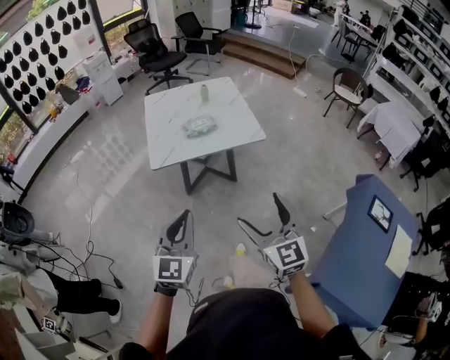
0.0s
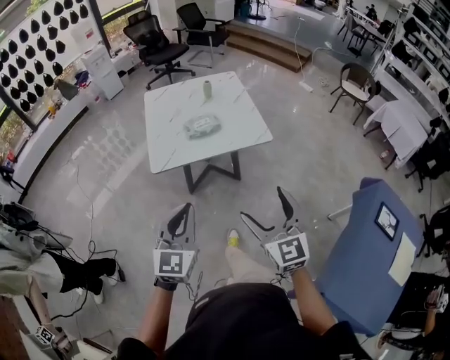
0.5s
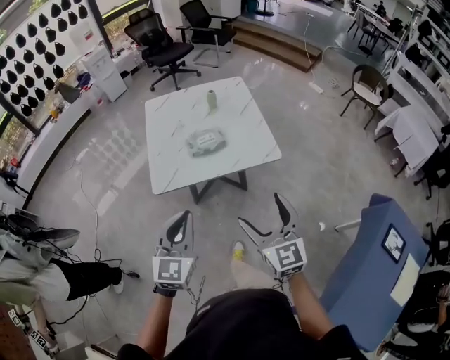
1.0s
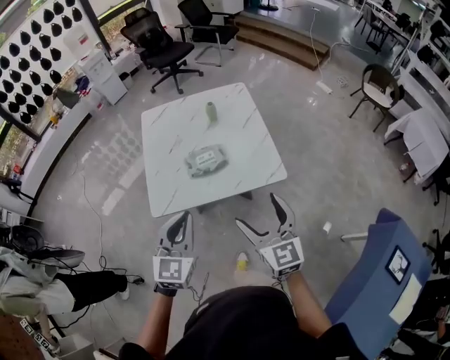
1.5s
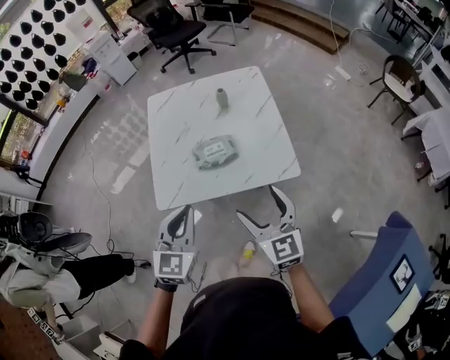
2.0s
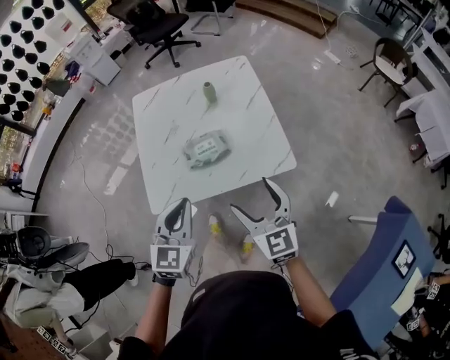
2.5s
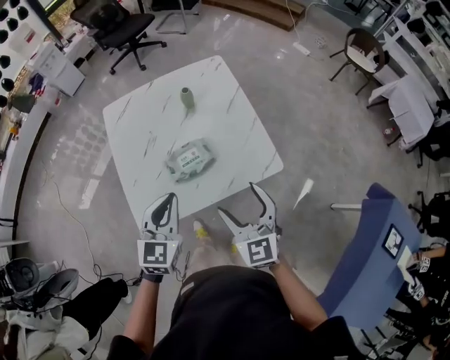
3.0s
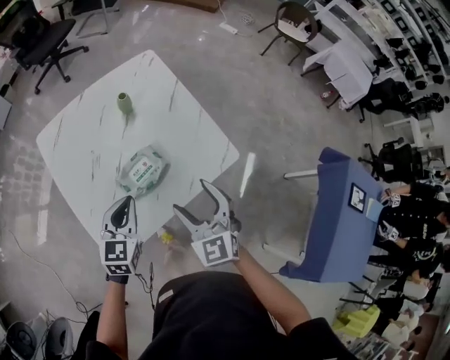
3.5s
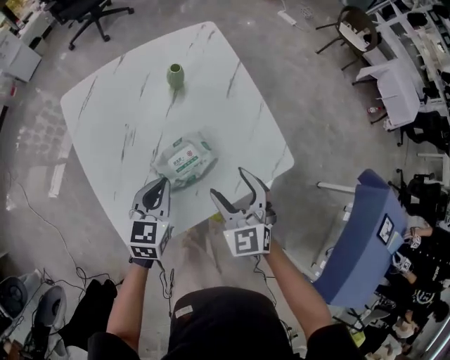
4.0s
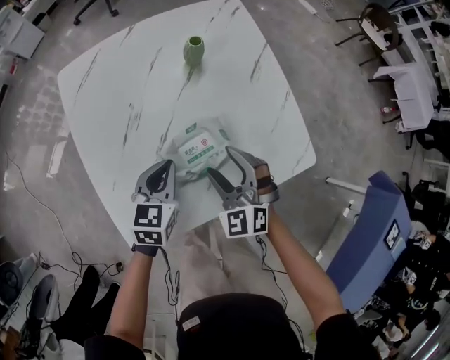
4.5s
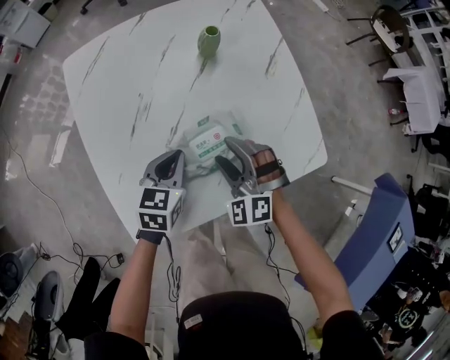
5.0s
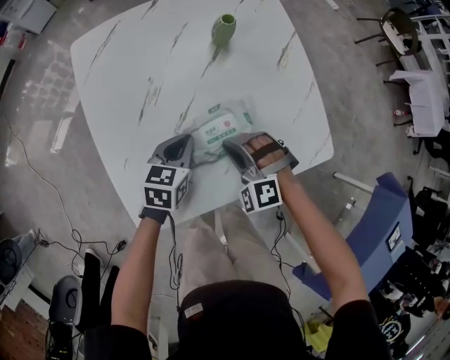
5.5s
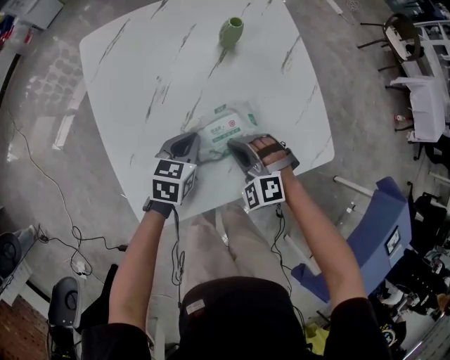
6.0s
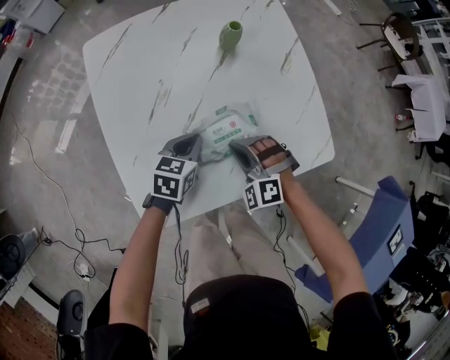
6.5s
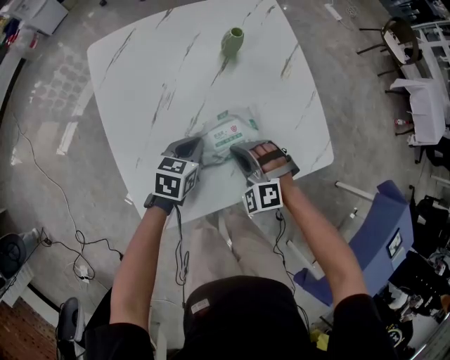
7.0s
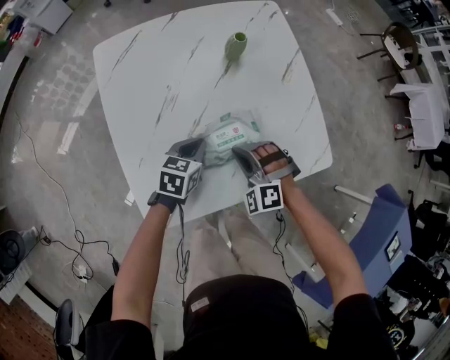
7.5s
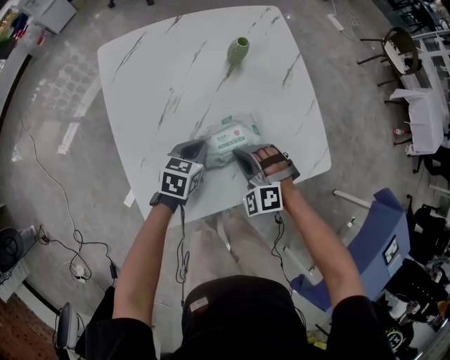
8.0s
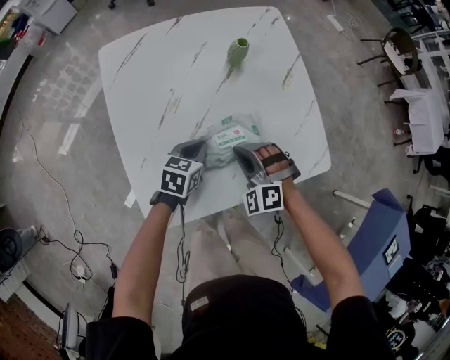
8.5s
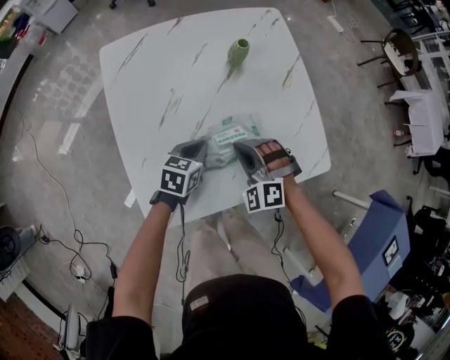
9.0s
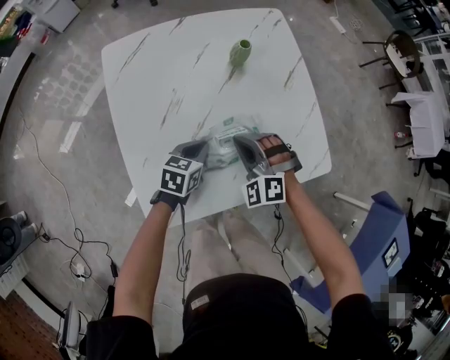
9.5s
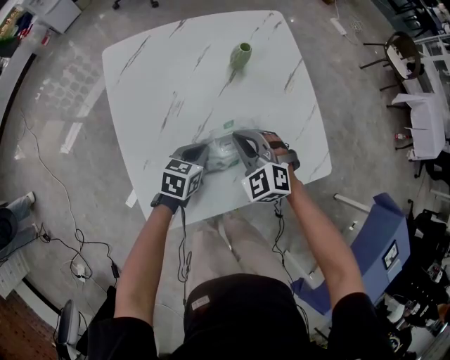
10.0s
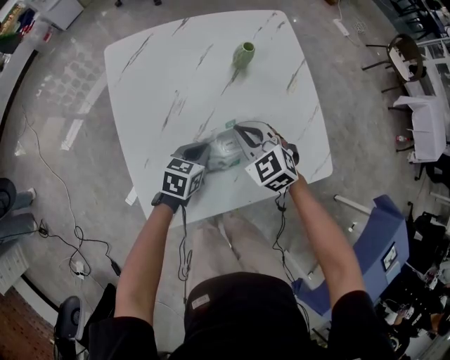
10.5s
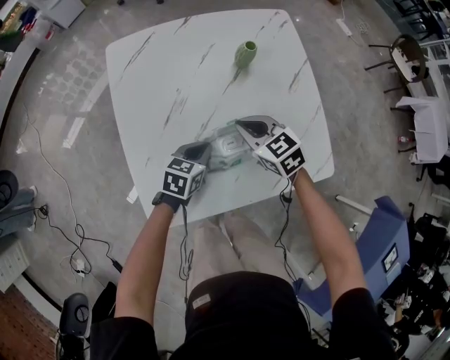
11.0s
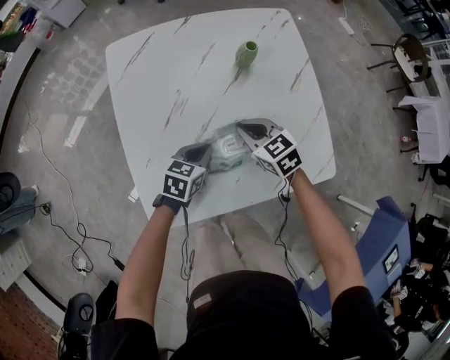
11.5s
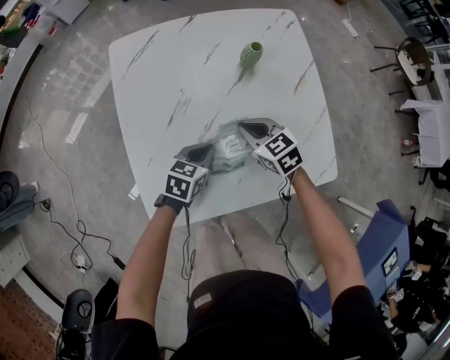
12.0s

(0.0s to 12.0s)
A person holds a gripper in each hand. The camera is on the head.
0.0s - 2.0s: The two grippers travel together, forward, approximately 40 cm.
2.0s - 4.0s: The left gripper shifts by about 35 cm, and changes its angle by about 30 degrees. Meanwhile the right gripper ends up some 30 cm from where it was, and rotates approximately 30 degrees.
4.0s - 6.0s: The left gripper heads downward, covering some 10 cm; the right gripper moves downward and to the left, about 20 cm, rotates around the line of its fingers by approximately 40 degrees, counterclockwise from behind, and closes its fingers.
6.0s - 8.0s: There are only small adjustments of the grippers.
8.0s - 10.0s: The right gripper moves forward, approximately 5 cm, and changes its angle by approximately 20 degrees.
10.0s - 12.0s: The right gripper moves approximately 5 cm, and turns by some 40 degrees.

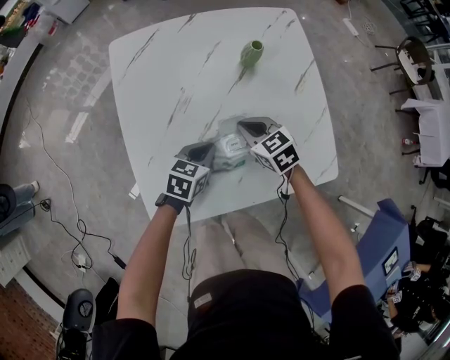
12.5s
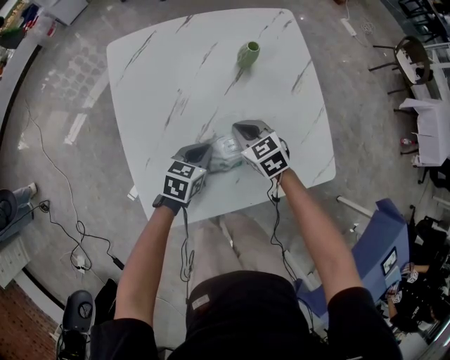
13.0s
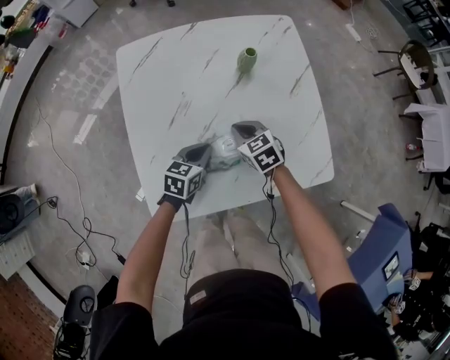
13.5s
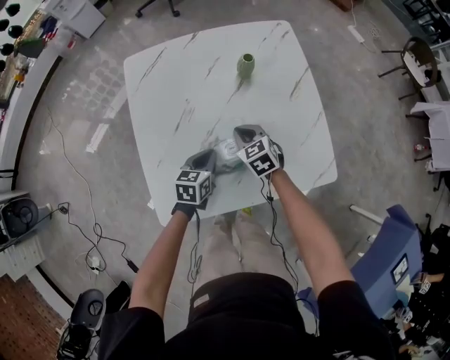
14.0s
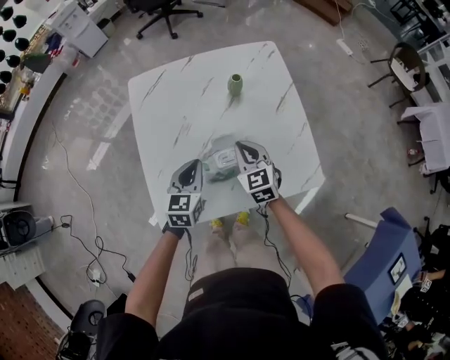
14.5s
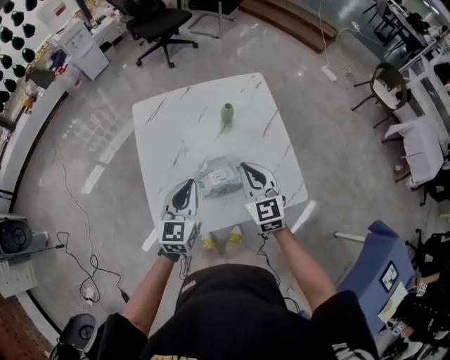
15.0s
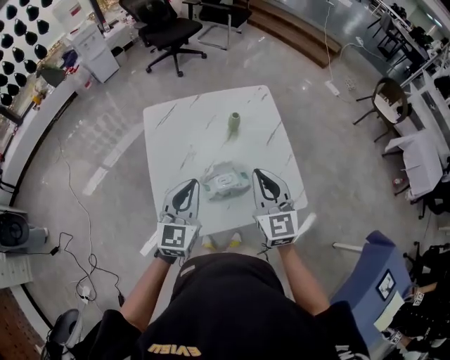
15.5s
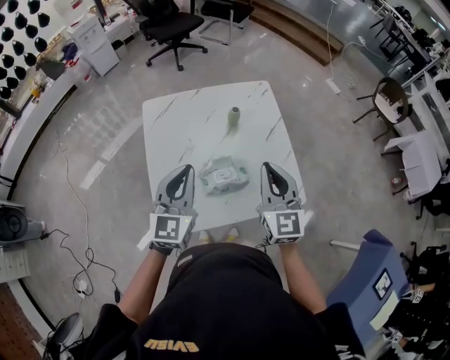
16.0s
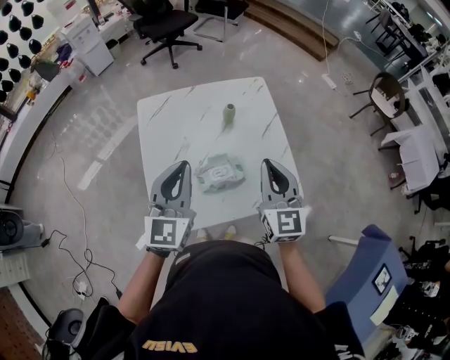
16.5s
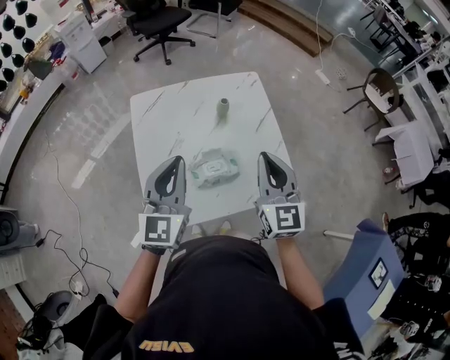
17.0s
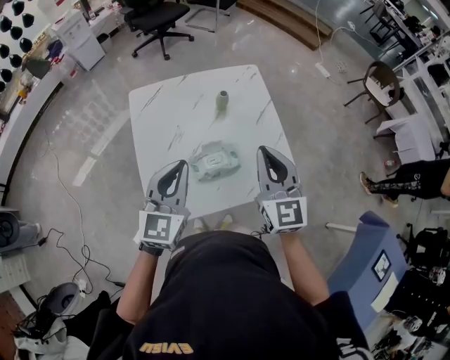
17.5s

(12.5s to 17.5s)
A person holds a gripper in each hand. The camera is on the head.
12.5s - 15.0s: The two grippers go some 25 cm upward. The left gripper rotates about 40 degrees; the right gripper rotates about 40 degrees.
15.0s - 17.5s: The right gripper shifts roughly 15 cm upward and backward. Meanwhile the left gripper moves upward, about 10 cm.

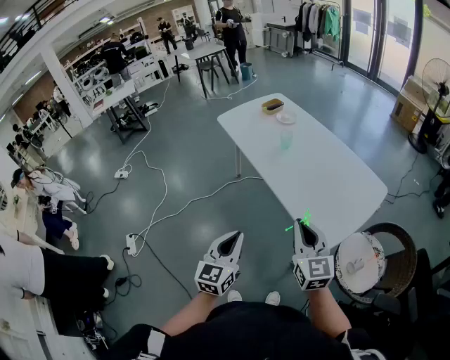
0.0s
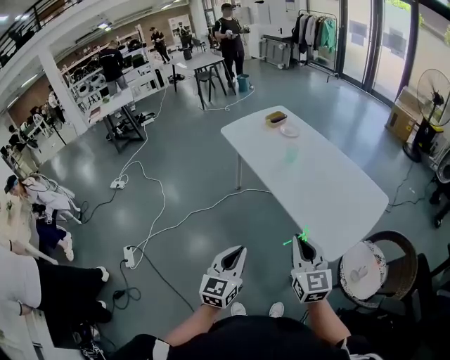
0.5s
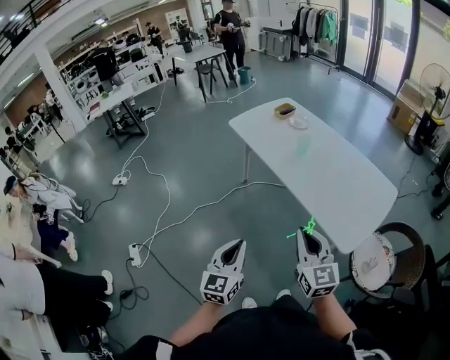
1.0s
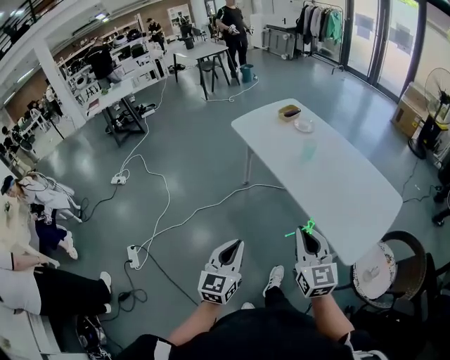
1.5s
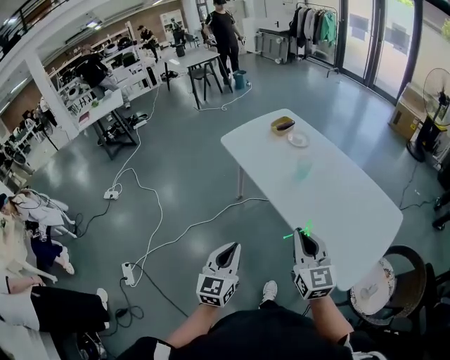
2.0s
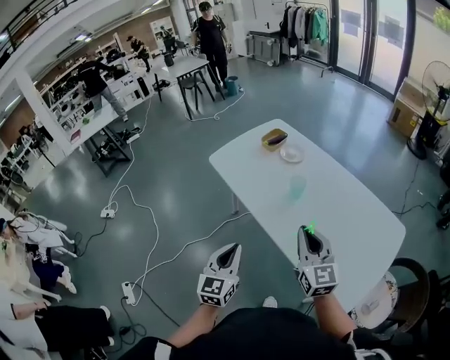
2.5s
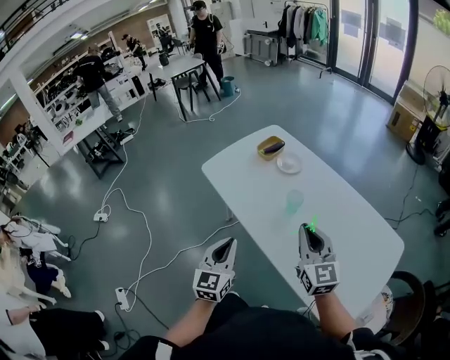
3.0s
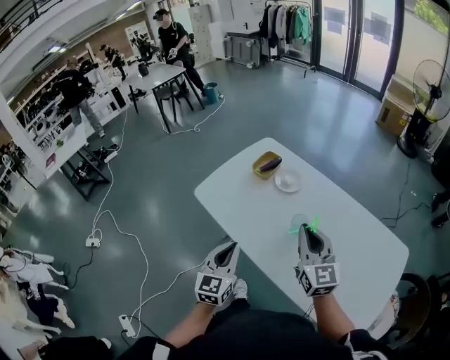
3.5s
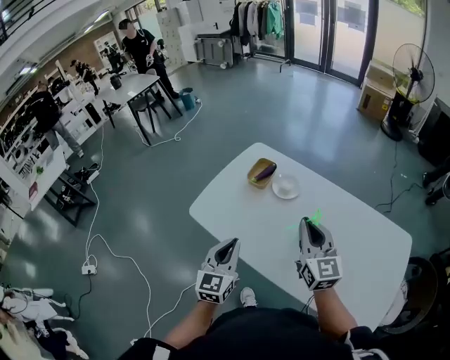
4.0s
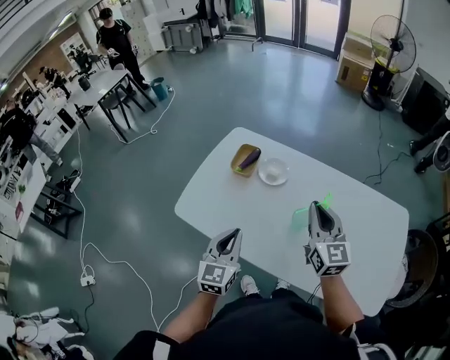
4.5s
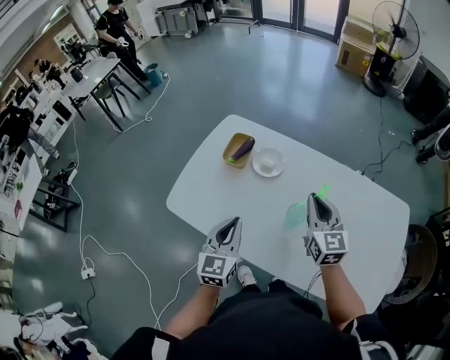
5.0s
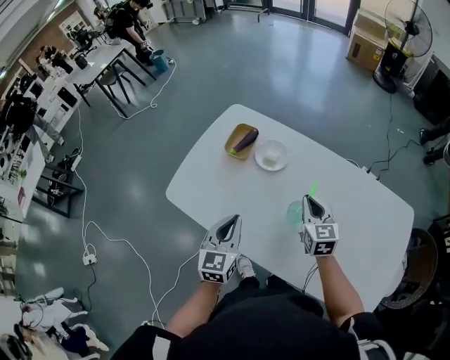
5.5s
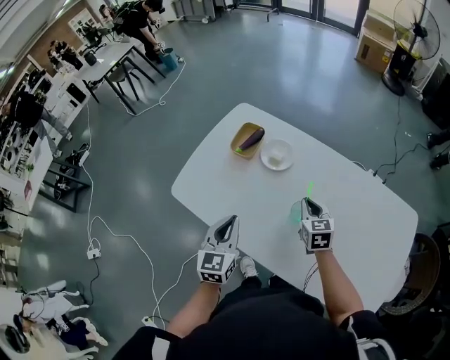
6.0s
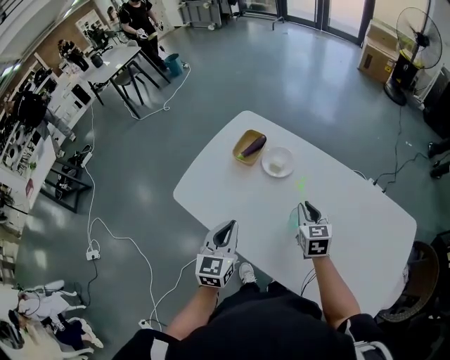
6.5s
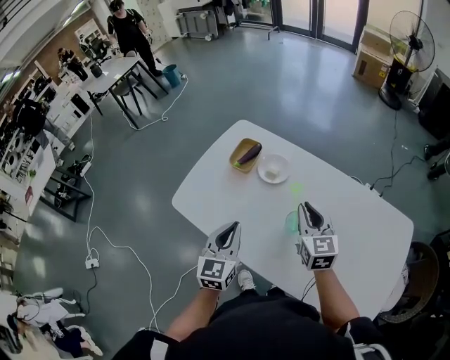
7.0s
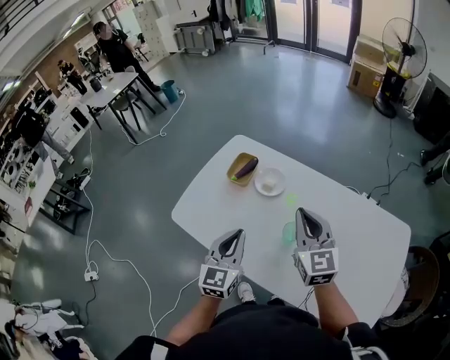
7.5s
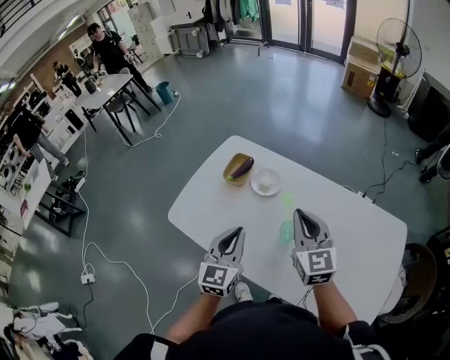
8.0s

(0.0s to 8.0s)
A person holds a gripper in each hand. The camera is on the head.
0.0s - 2.0s: The grippers both shift forward and to the left by about 20 cm.
2.0s - 4.0s: The two grippers travel together, forward, approximately 50 cm. The right gripper swivels roughly 20 degrees.
4.0s - 6.0s: The right gripper travels downward and forward by approximately 25 cm, and angles its fingers downward, by some 30 degrees; the left gripper goes some 10 cm forward and downward.
6.0s - 8.0s: The right gripper travels upward by approximately 20 cm, and changes its angle by approximately 30 degrees. The left gripper goes some 10 cm upward.

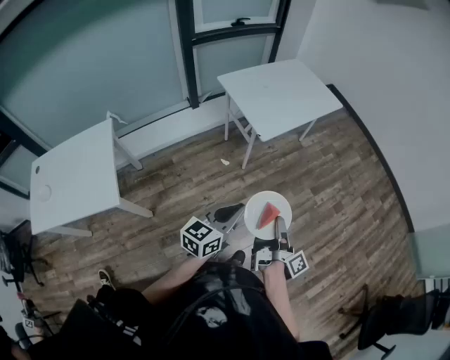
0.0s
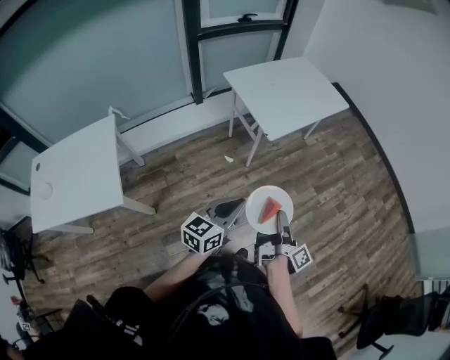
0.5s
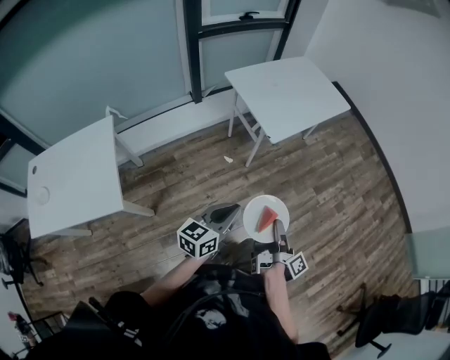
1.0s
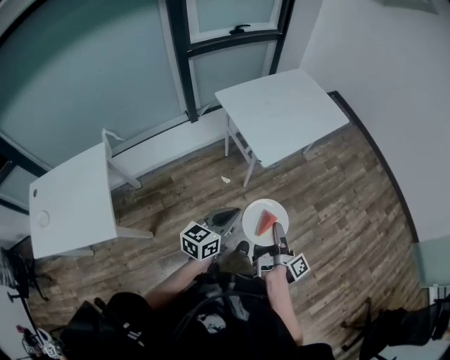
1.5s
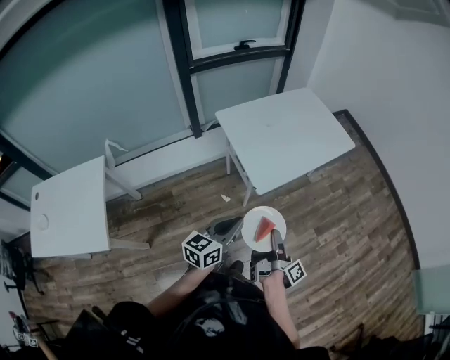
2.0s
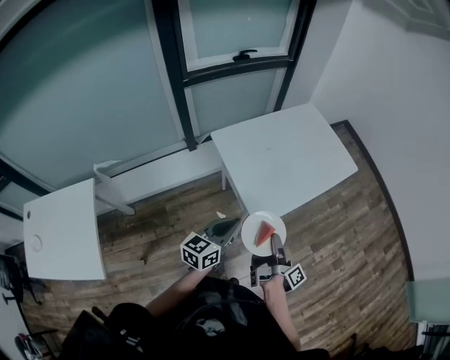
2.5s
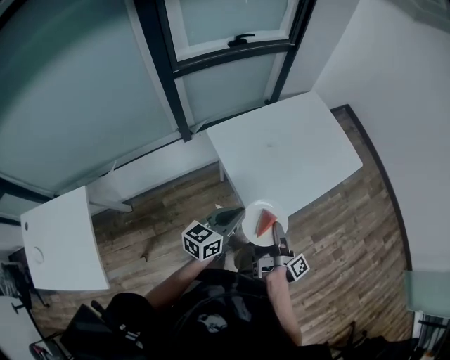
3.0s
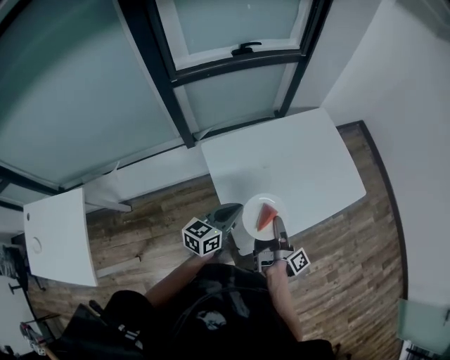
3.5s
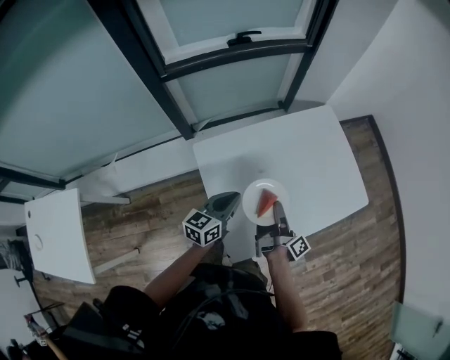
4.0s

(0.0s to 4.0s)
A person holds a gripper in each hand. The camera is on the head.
0.0s - 2.0s: The left gripper shifts by about 25 cm.
2.0s - 4.0s: The left gripper shifts by roughly 50 cm.
